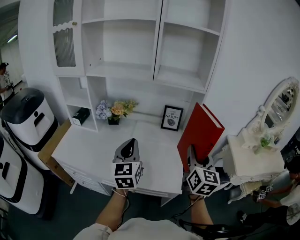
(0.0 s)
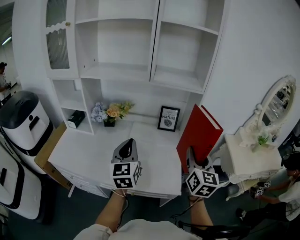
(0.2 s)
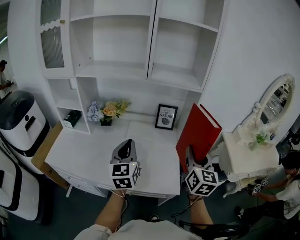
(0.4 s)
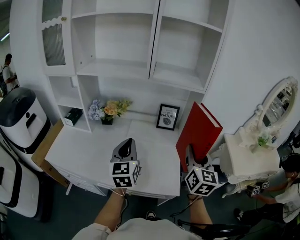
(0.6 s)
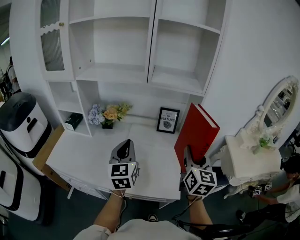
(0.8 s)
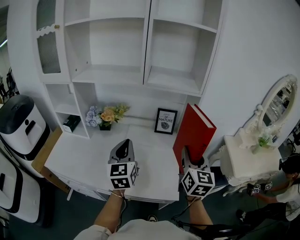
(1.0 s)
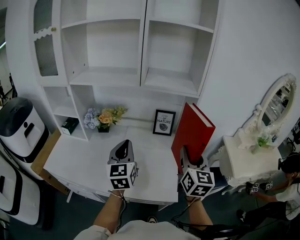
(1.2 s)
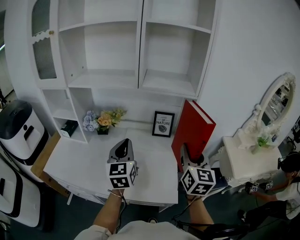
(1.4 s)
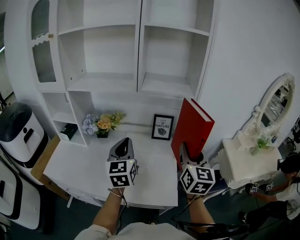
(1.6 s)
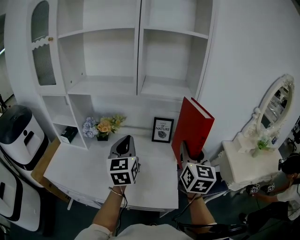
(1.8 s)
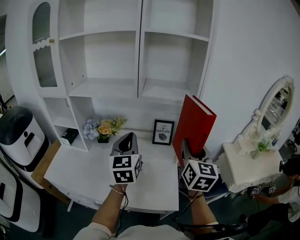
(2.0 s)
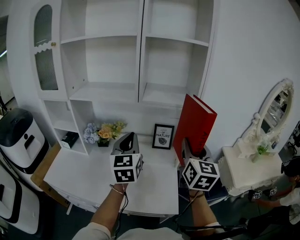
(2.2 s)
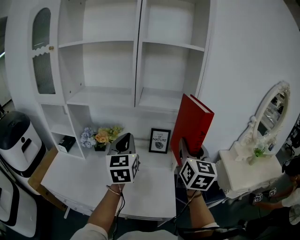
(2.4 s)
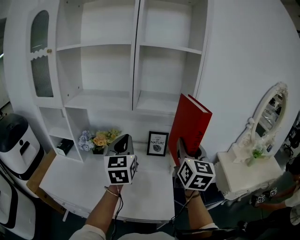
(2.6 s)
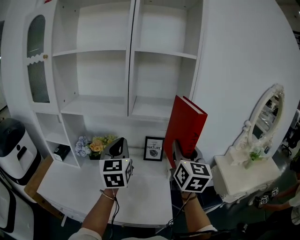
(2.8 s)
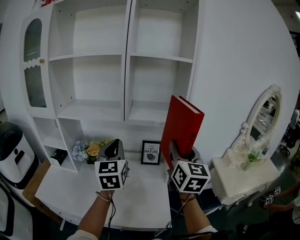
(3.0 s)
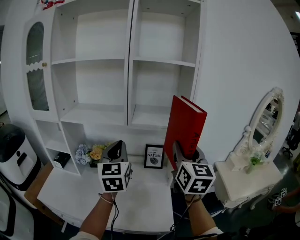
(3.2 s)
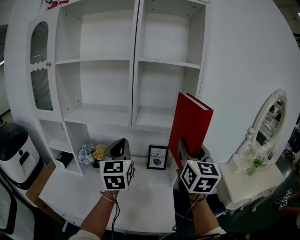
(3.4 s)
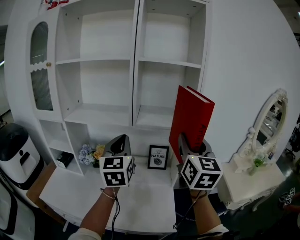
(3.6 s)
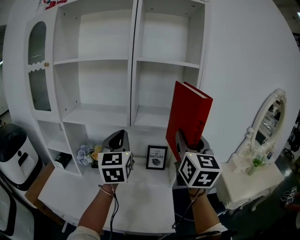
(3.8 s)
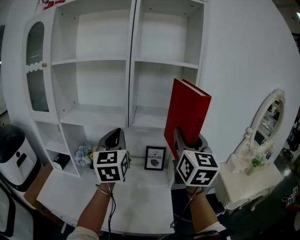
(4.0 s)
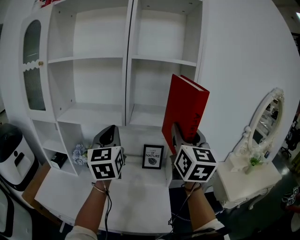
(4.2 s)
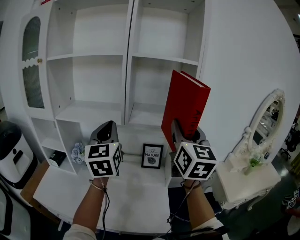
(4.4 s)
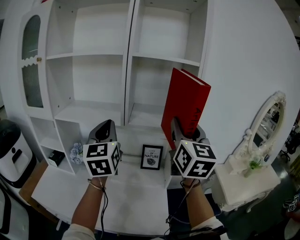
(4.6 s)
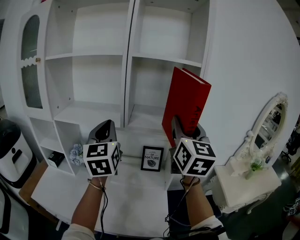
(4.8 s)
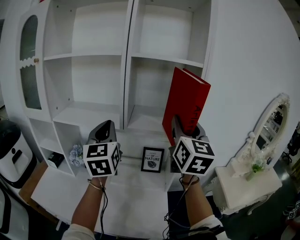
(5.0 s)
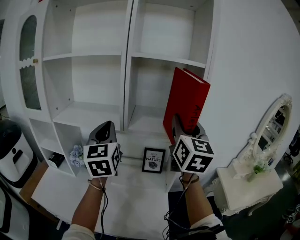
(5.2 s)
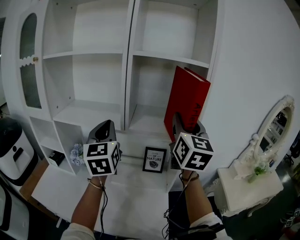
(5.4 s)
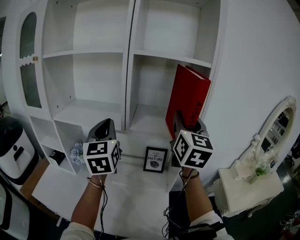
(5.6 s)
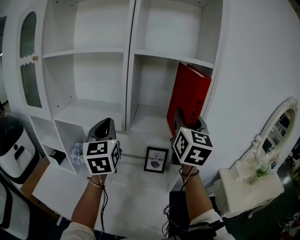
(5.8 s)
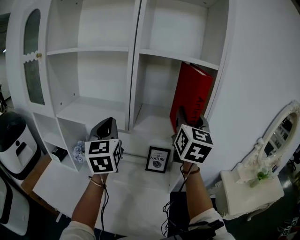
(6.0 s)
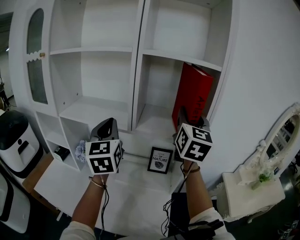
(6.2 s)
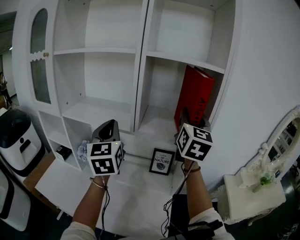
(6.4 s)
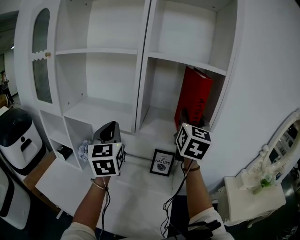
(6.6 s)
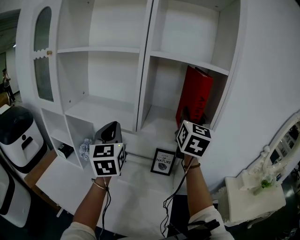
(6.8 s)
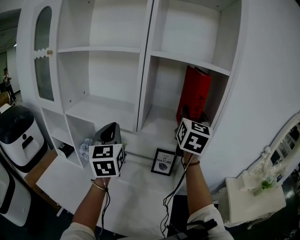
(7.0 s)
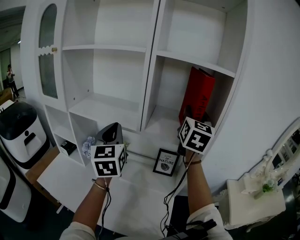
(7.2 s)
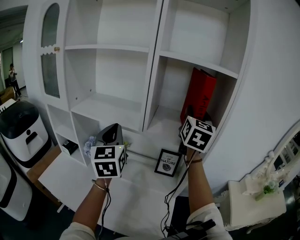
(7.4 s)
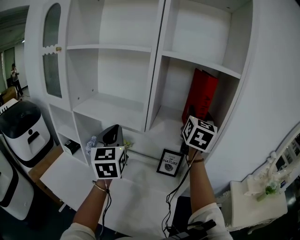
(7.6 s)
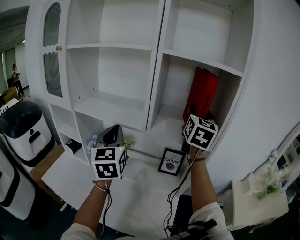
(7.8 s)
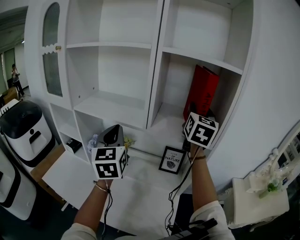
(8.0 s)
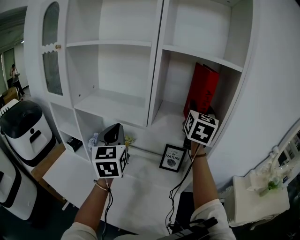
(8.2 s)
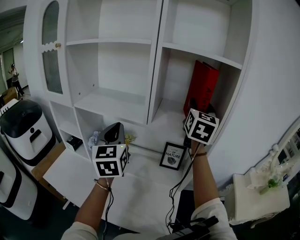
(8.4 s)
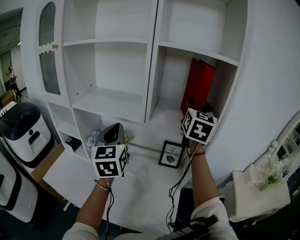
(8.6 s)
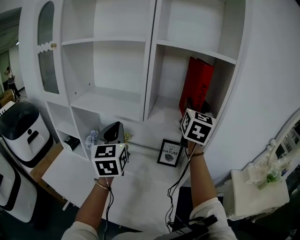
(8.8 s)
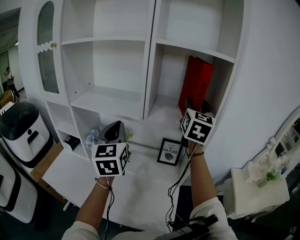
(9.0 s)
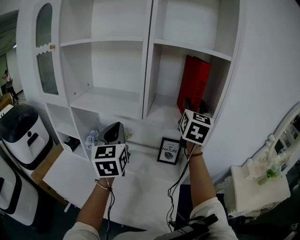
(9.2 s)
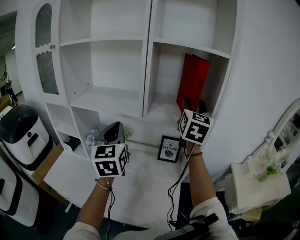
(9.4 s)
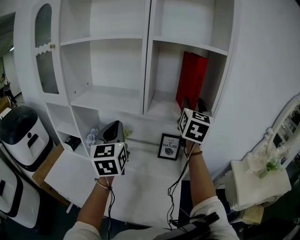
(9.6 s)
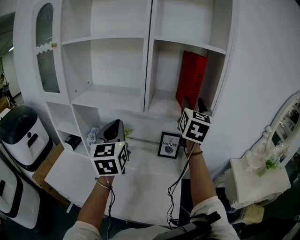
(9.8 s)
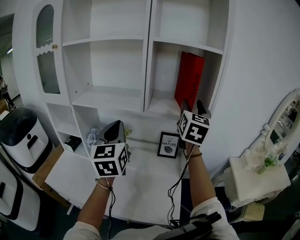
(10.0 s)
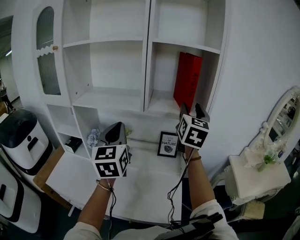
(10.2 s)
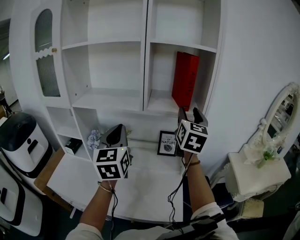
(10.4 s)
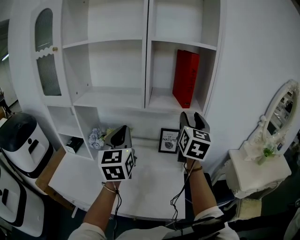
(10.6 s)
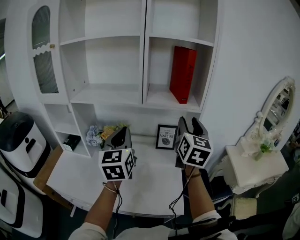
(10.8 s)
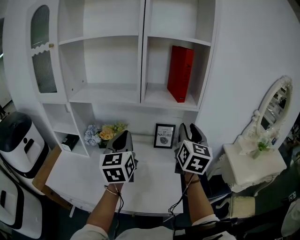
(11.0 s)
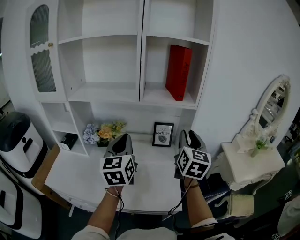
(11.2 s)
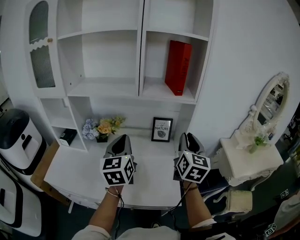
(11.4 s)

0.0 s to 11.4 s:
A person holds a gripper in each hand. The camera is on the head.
0.0 to 1.4 s: The two grippers go some 10 cm forward.
1.4 to 2.8 s: The grippers both shift upward by about 10 cm.
2.8 to 4.2 s: The two grippers go approximately 10 cm upward.
4.2 to 5.6 s: The right gripper goes some 10 cm forward, while the left gripper is displaced forward by roughly 5 cm.
5.6 to 7.2 s: The right gripper goes about 10 cm forward.
7.2 to 8.6 s: There are only small adjustments of the grippers.
8.6 to 10.0 s: The two grippers go approximately 5 cm backward.
10.0 to 11.4 s: The left gripper goes about 10 cm downward and backward. Meanwhile the right gripper is displaced backward and downward by about 20 cm, and closes its fingers.

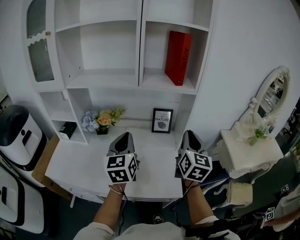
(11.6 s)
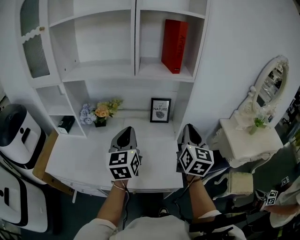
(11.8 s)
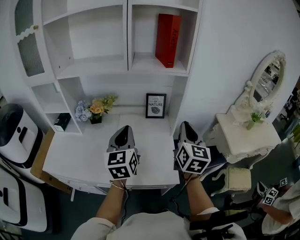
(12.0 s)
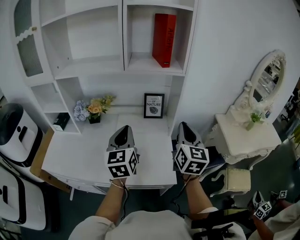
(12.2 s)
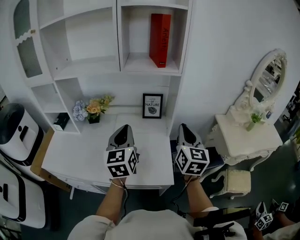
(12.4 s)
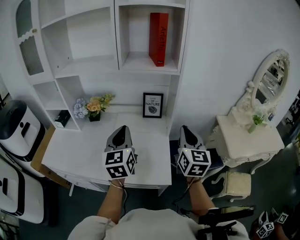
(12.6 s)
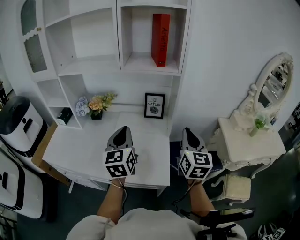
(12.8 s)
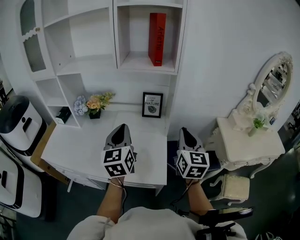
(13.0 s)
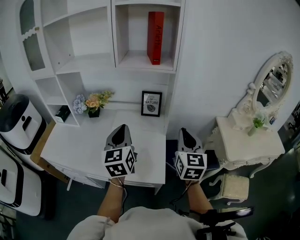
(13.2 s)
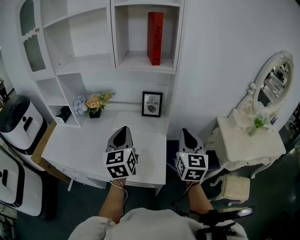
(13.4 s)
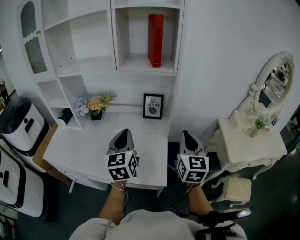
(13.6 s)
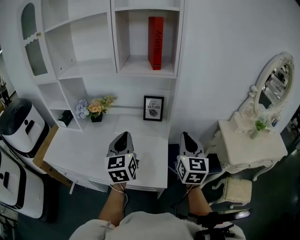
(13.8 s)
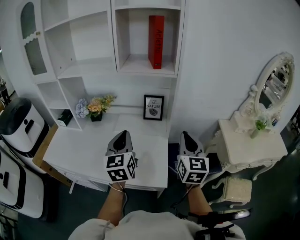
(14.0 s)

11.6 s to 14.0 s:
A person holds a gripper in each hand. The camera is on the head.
11.6 to 12.8 s: Both grippers move to the right, roughly 10 cm.
12.8 to 14.0 s: The grippers make only small movements.

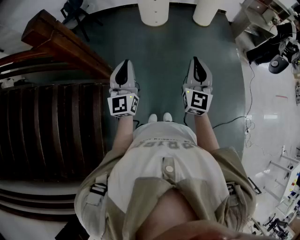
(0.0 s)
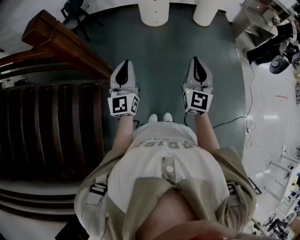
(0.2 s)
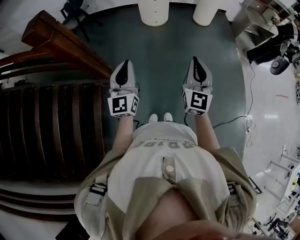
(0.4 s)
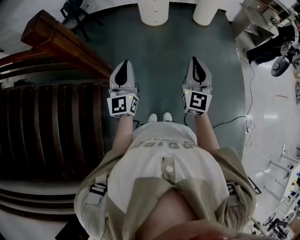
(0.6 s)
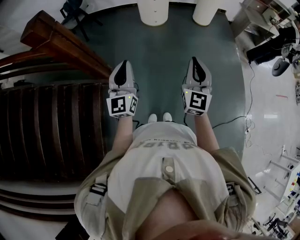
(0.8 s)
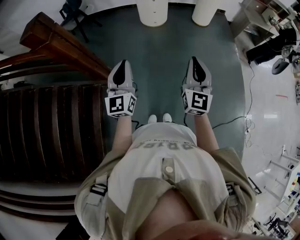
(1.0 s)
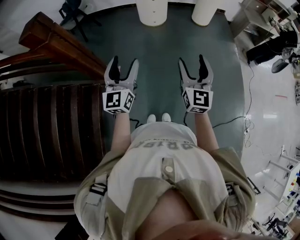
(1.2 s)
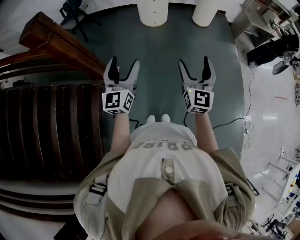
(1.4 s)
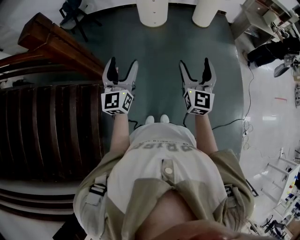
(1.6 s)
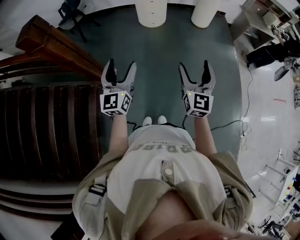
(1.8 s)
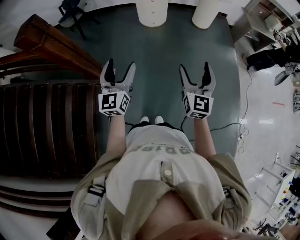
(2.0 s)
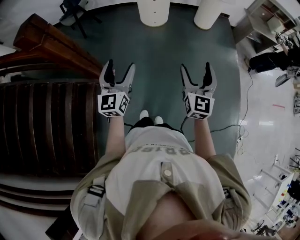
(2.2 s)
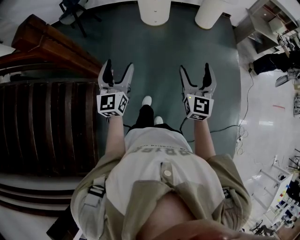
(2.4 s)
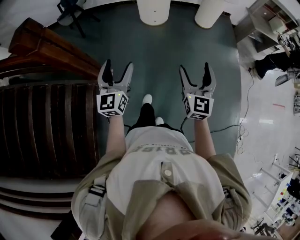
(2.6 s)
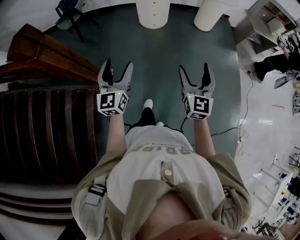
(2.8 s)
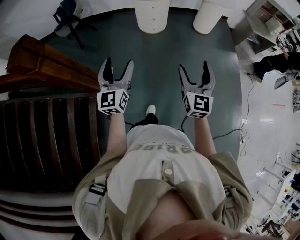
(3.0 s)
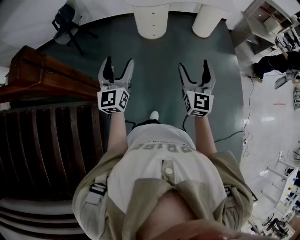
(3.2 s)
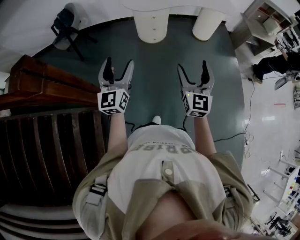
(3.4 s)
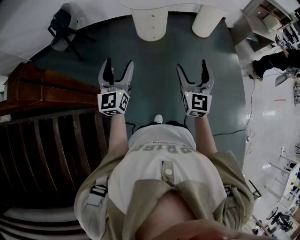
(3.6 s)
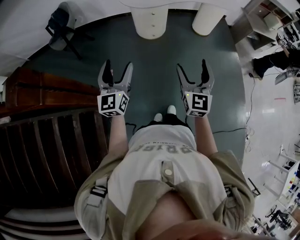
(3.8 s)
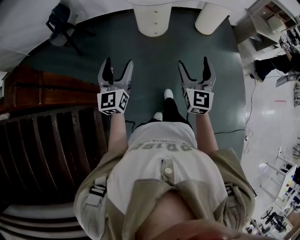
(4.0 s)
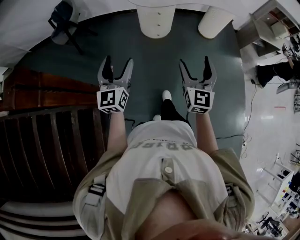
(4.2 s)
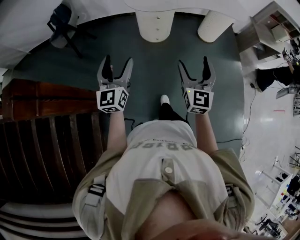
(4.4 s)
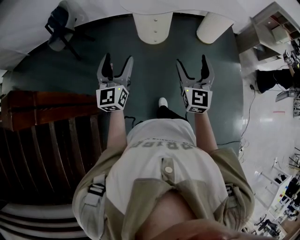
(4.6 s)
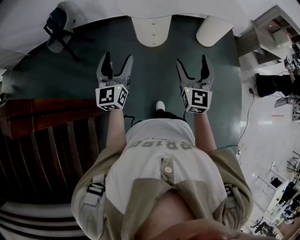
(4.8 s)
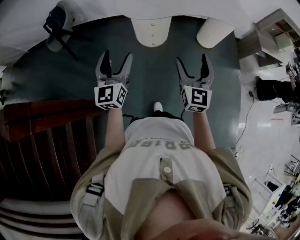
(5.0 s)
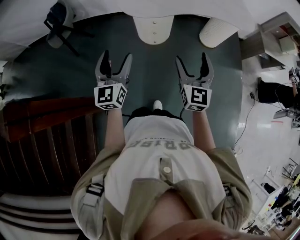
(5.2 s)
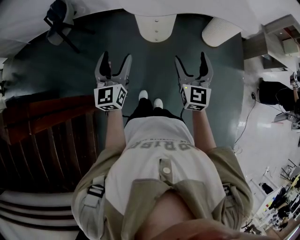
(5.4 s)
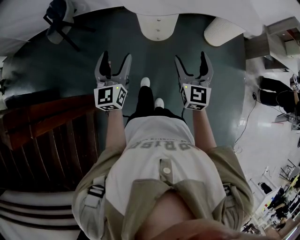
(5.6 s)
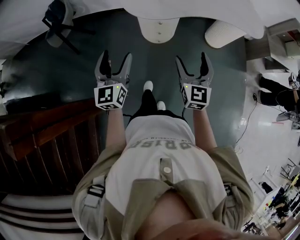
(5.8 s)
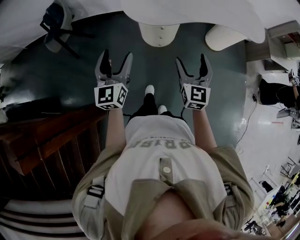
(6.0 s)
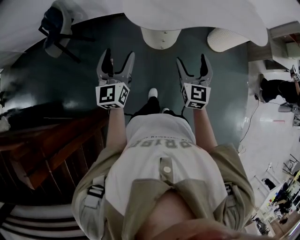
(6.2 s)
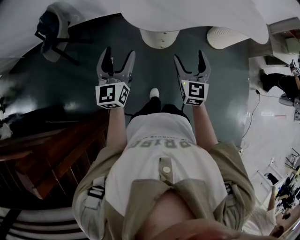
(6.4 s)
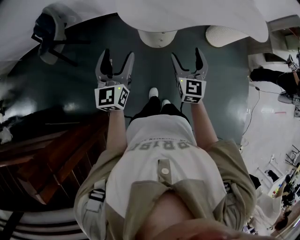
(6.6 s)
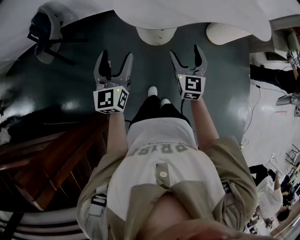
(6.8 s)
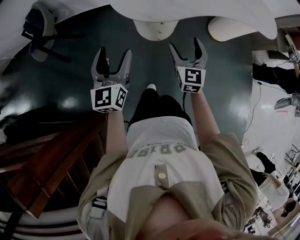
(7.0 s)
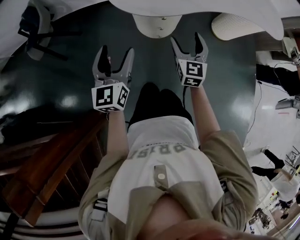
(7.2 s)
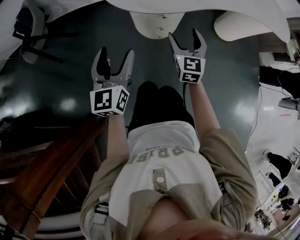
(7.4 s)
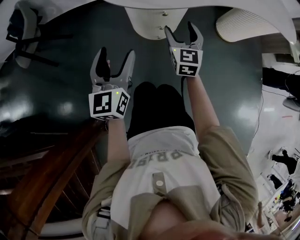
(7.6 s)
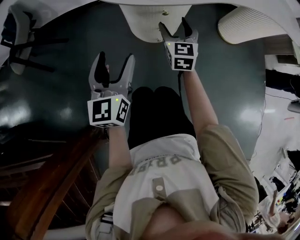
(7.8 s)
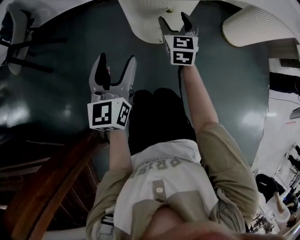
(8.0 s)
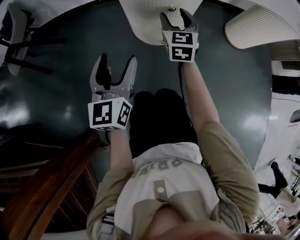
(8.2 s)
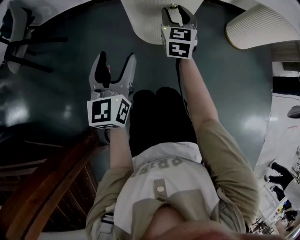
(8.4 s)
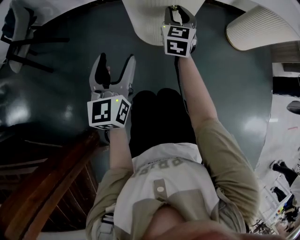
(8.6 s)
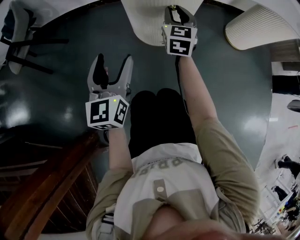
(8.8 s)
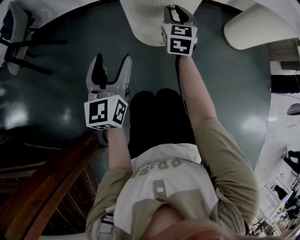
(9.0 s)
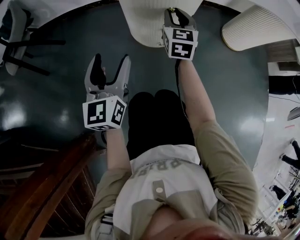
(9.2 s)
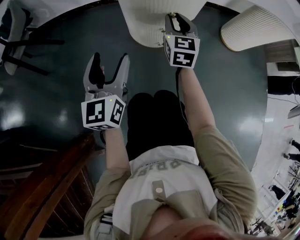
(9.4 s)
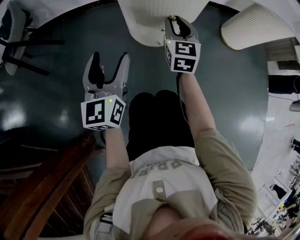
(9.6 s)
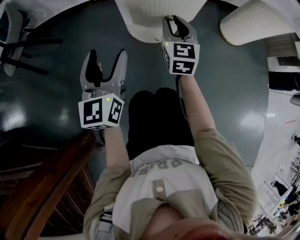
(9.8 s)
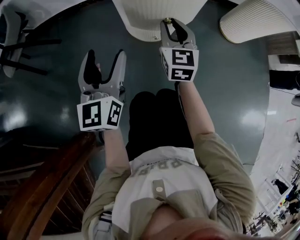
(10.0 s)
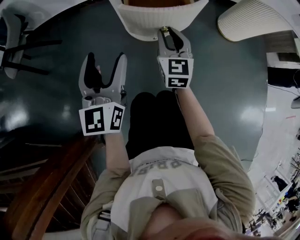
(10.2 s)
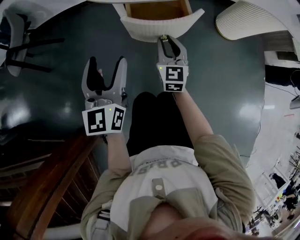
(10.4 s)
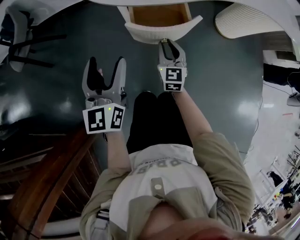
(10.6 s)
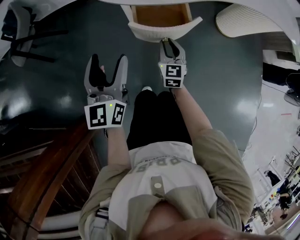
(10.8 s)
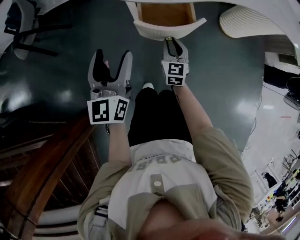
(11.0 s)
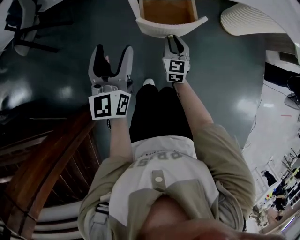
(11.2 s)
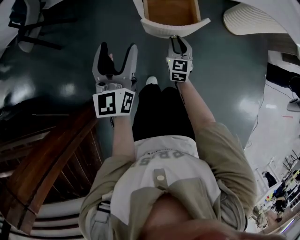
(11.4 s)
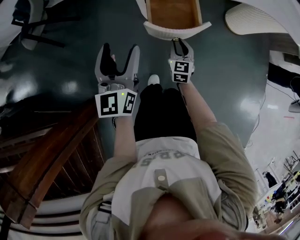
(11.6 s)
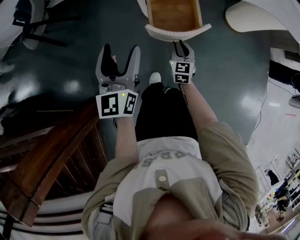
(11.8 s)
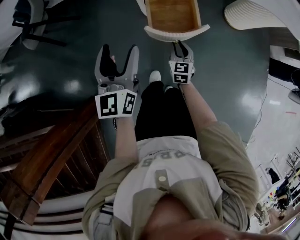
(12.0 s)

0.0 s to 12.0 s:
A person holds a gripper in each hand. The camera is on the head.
0.0 to 1.6 s: The right gripper opens, while the left gripper opens its fingers.
1.6 to 3.0 s: The two grippers go some 15 cm forward.
3.0 to 4.4 s: The grippers both shift forward by roughly 20 cm.
4.4 to 6.0 s: Both grippers move forward, about 25 cm.
6.0 to 7.6 s: The grippers both shift downward and forward by about 35 cm.
7.6 to 9.0 s: The right gripper is displaced forward and downward by approximately 15 cm, and closes its fingers. The left gripper heads downward, covering about 15 cm.
9.0 to 10.4 s: The left gripper travels upward by approximately 10 cm, while the right gripper shifts some 15 cm backward.
10.4 to 12.0 s: The left gripper moves upward and backward, approximately 10 cm. The right gripper heads backward, covering roughly 10 cm.
